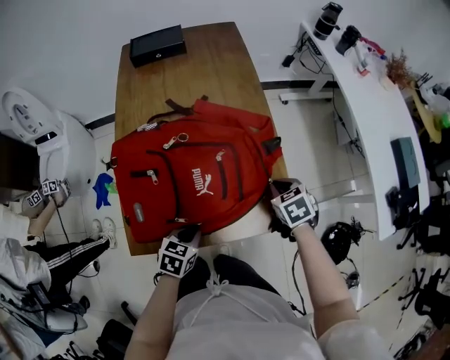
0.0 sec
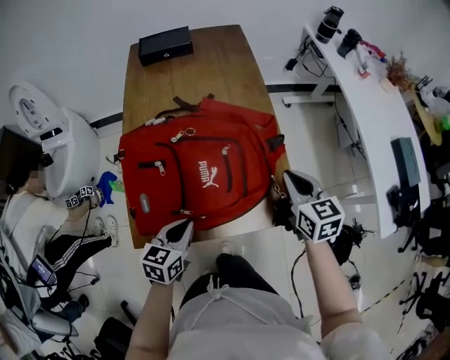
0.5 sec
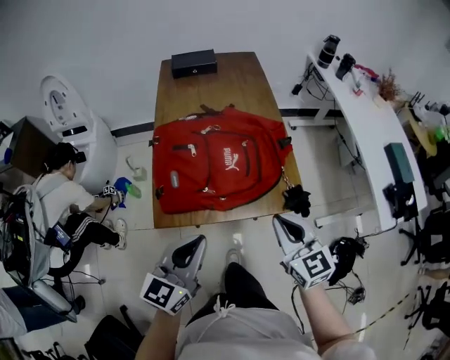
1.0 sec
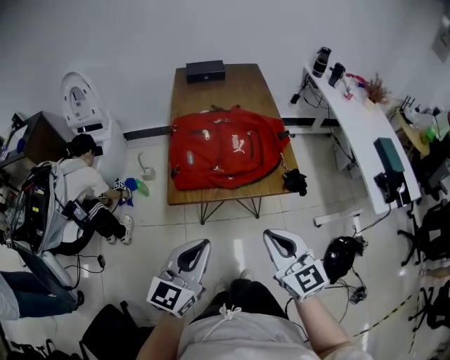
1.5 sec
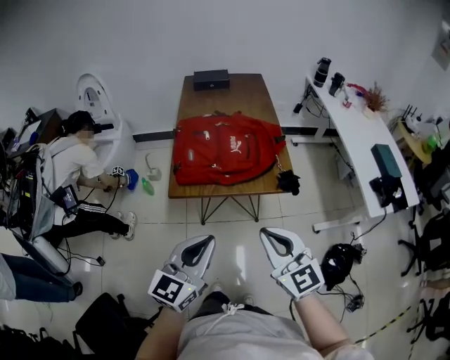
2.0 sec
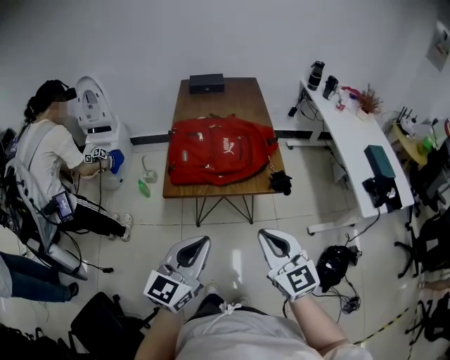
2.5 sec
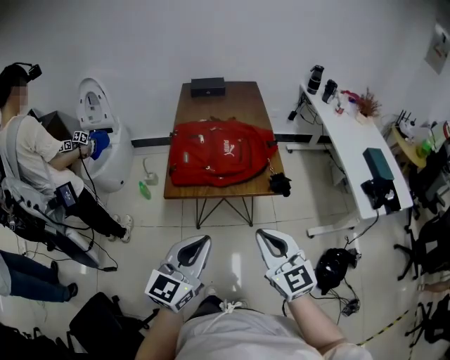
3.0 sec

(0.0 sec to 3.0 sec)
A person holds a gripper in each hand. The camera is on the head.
0.0 sec - 1.5 sec: The right gripper is displaced backward and upward by approximately 40 cm, and tilts its fingers approximately 50 degrees upward; the left gripper shifts some 40 cm upward and backward, and tilts its fingers roughly 50 degrees upward.
1.5 sec - 3.0 sec: The left gripper moves backward and to the right, approximately 10 cm, while the right gripper goes approximately 5 cm backward.

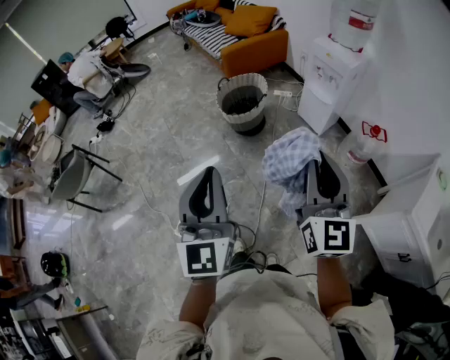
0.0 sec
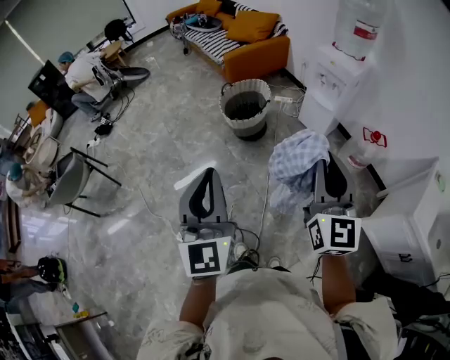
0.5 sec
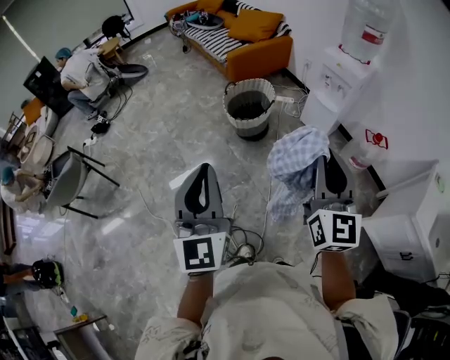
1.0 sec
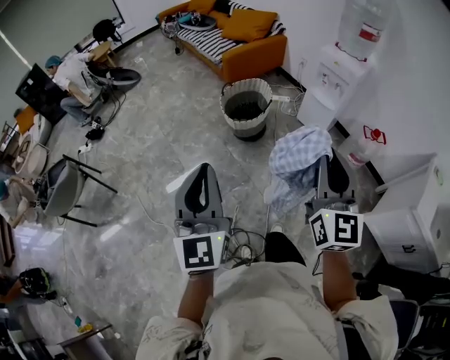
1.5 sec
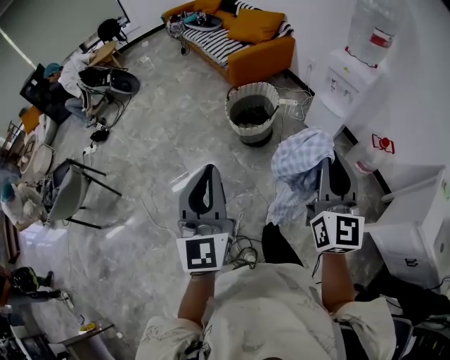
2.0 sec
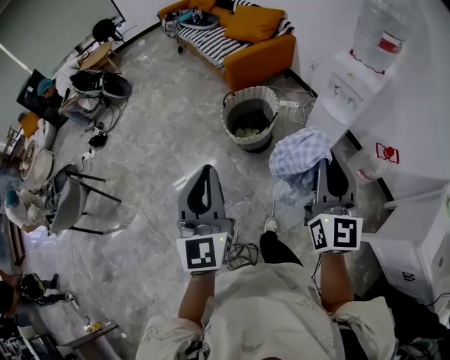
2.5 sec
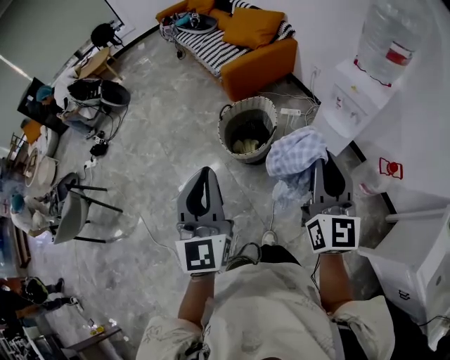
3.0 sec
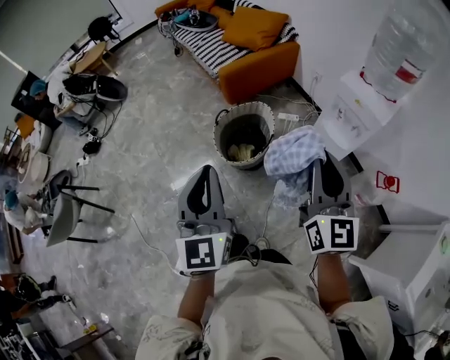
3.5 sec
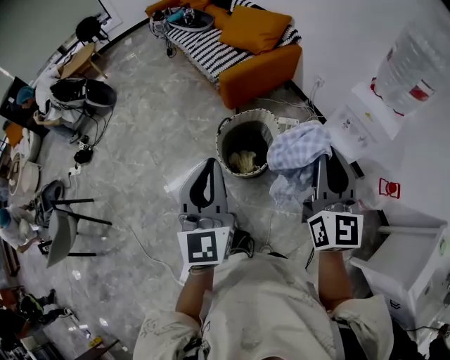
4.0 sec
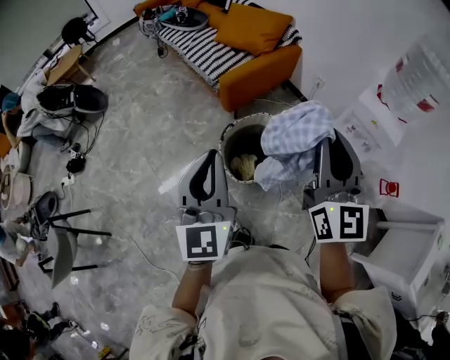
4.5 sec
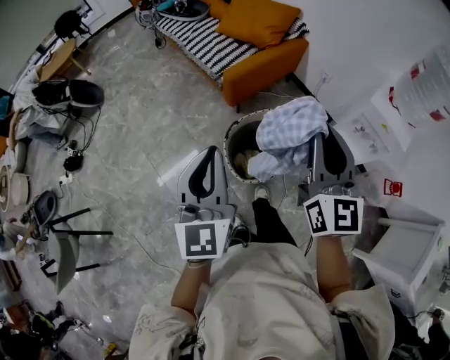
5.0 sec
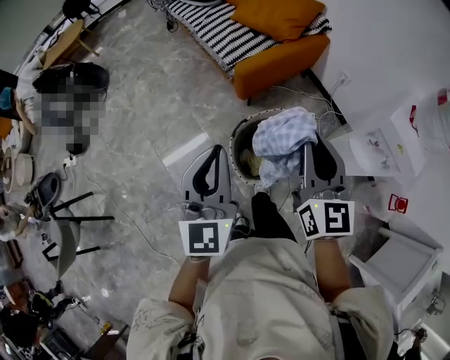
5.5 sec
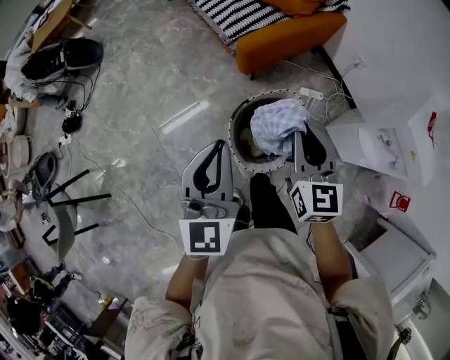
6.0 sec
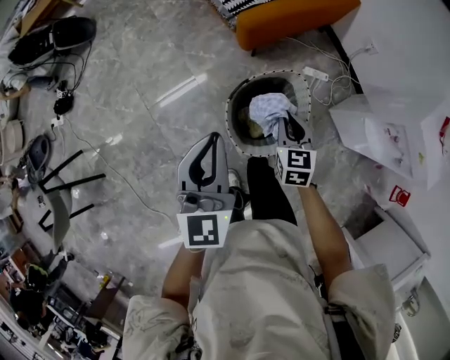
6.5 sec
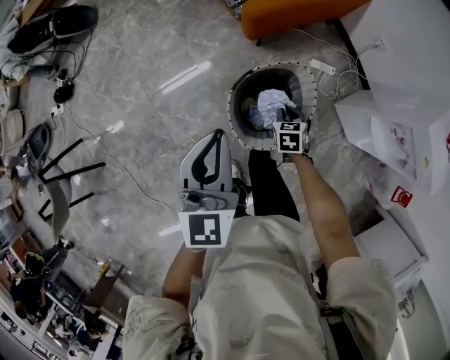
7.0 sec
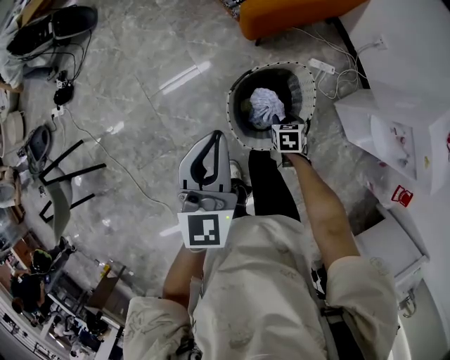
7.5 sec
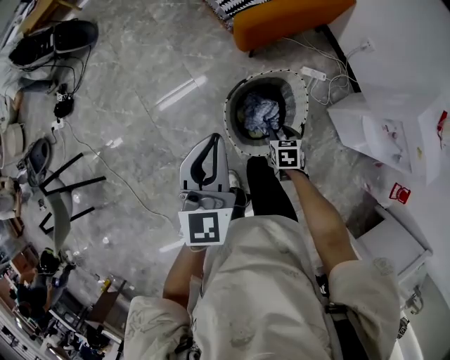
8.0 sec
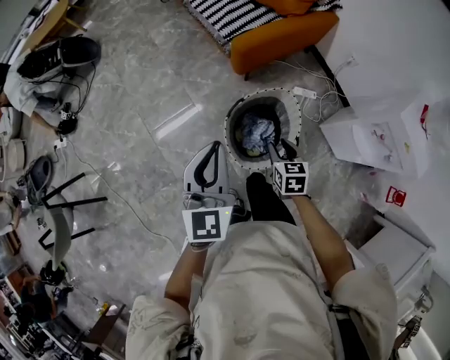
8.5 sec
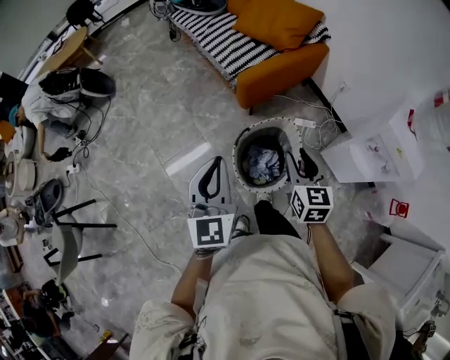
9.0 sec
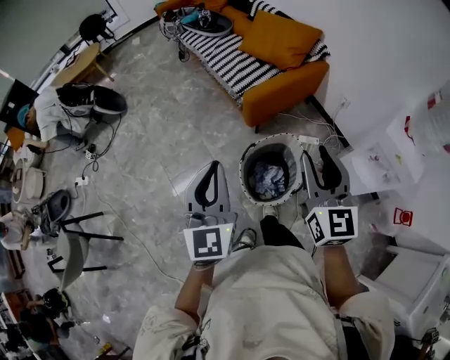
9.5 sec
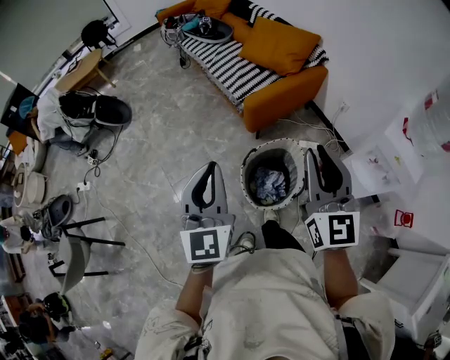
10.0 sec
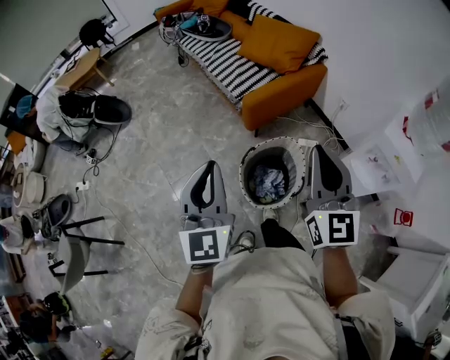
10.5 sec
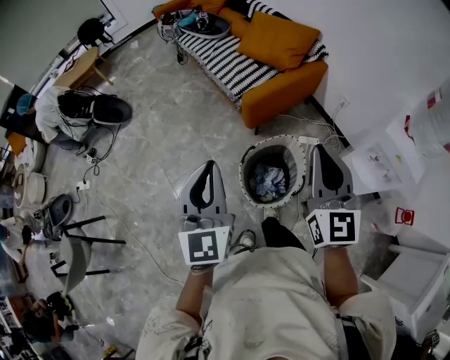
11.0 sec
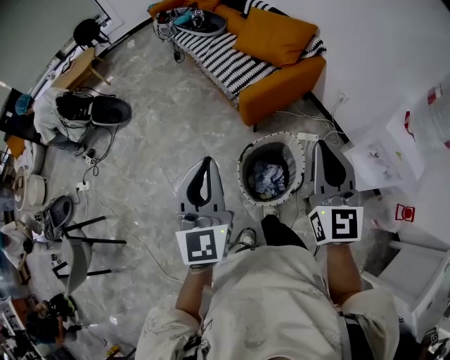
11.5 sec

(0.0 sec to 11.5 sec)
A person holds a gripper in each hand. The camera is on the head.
0.0 sec - 2.0 sec: Both grippers travel together to the left and forward, about 20 cm.
2.0 sec - 4.0 sec: Both grippers are carried forward, approximately 40 cm.
4.0 sec - 6.0 sec: The right gripper shifts about 40 cm forward, downward and to the left, and swivels approximately 20 degrees; the left gripper travels forward and downward by some 30 cm.
6.0 sec - 7.5 sec: The left gripper heads downward, covering some 10 cm; the right gripper heads downward, covering approximately 40 cm, tips its fingers downward by some 50 degrees, and opens.
7.5 sec - 9.5 sec: The right gripper shifts about 50 cm upward, and points its fingers about 60 degrees further upward, while the left gripper heads upward and backward, covering some 20 cm.
9.5 sec - 11.5 sec: The right gripper closes.

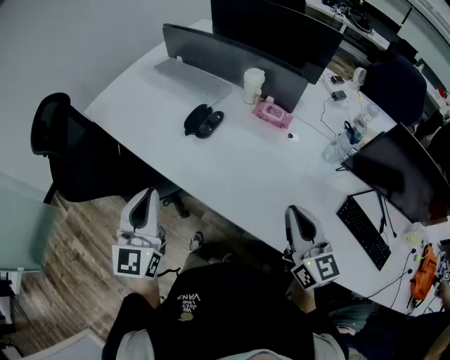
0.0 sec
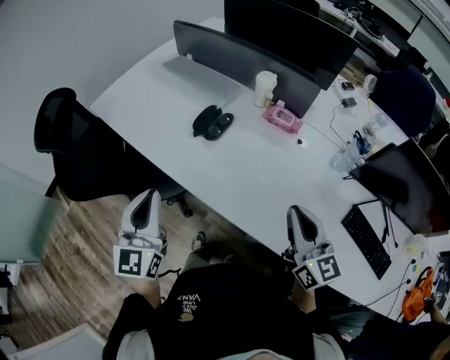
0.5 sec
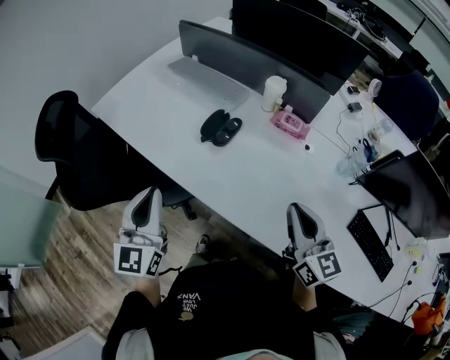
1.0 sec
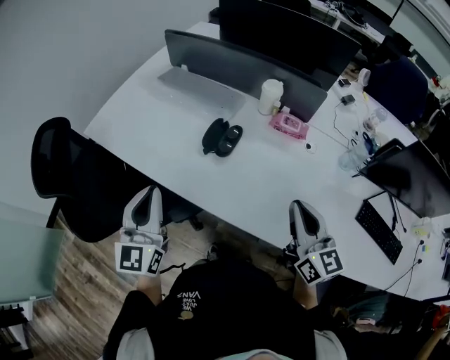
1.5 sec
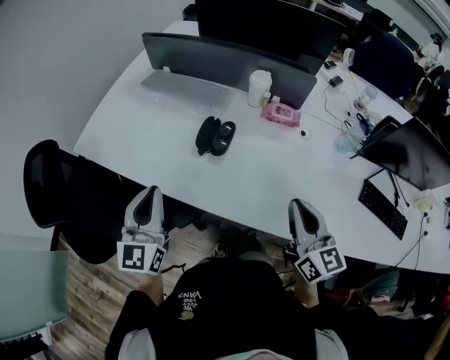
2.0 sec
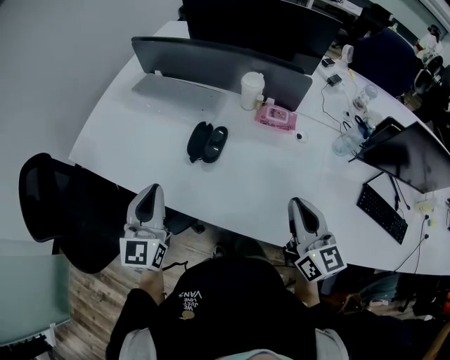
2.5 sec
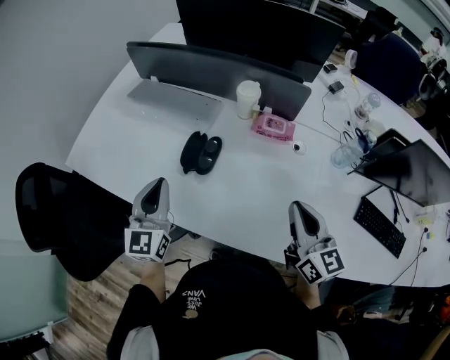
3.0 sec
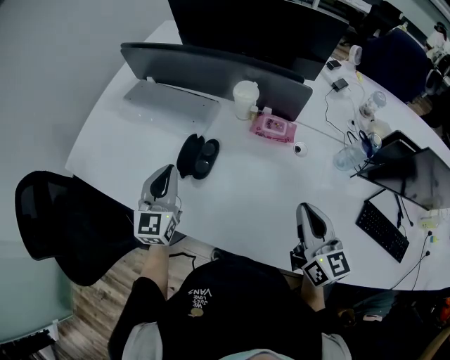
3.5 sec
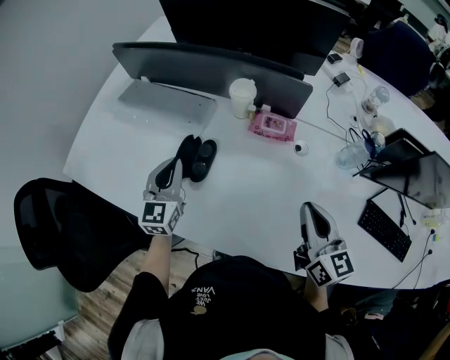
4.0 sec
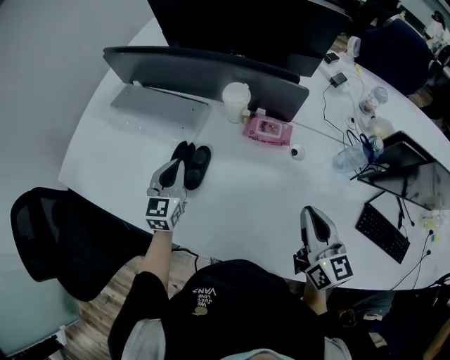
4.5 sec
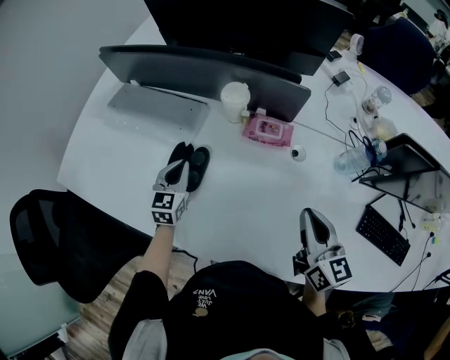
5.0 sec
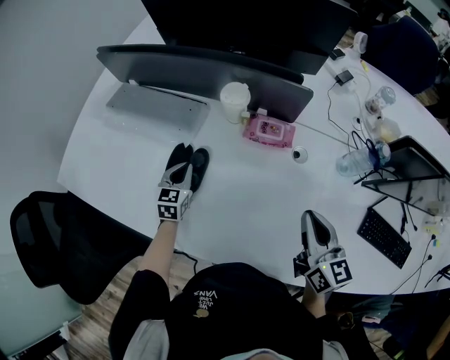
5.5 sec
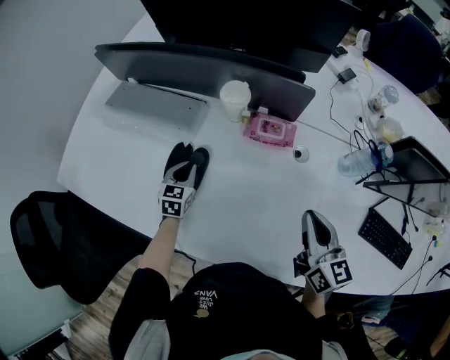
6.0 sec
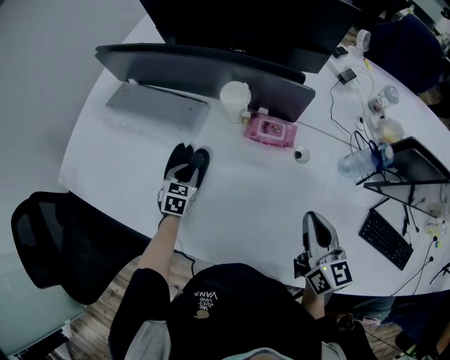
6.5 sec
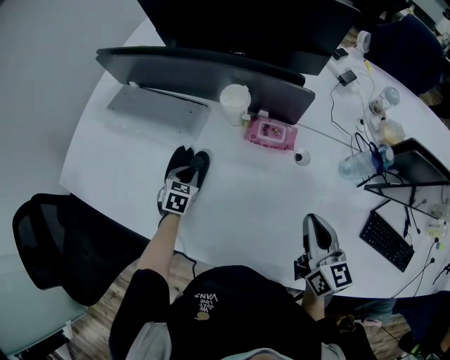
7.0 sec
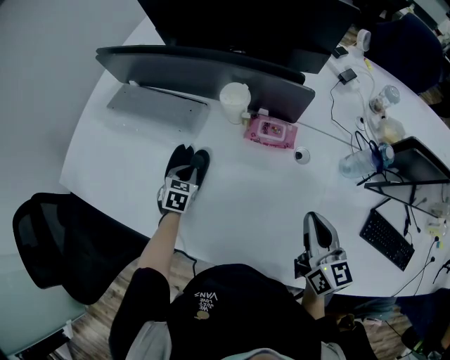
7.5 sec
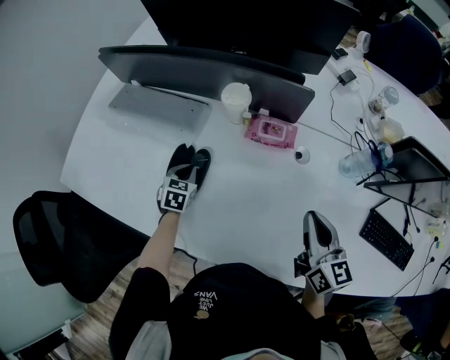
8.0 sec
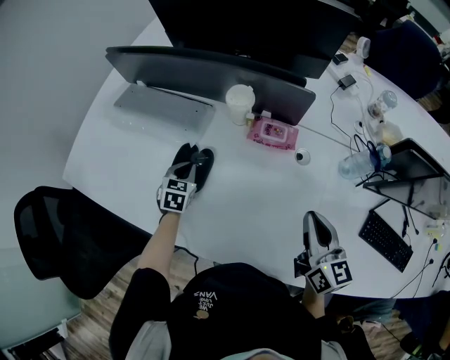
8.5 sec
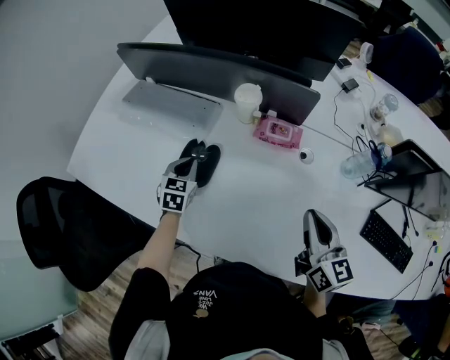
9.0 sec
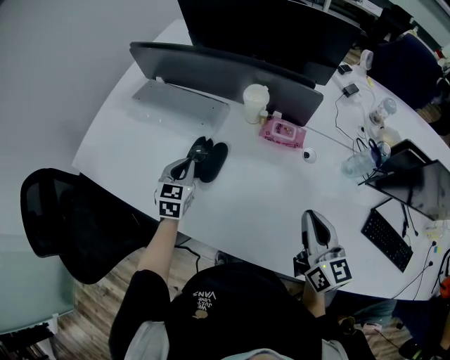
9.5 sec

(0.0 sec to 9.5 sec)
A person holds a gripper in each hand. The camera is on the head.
0.0 sec - 2.0 sec: The right gripper is displaced to the left and forward by approximately 15 cm. Meanwhile the left gripper goes some 20 cm forward and to the left.
2.0 sec - 4.0 sec: The right gripper goes some 15 cm to the right and forward. Meanwhile the left gripper travels forward, to the right and downward by roughly 25 cm.
4.0 sec - 5.5 sec: The right gripper shifts by approximately 5 cm. Meanwhile the left gripper goes roughly 15 cm downward and forward, and changes its angle by roughly 20 degrees.
5.5 sec - 7.5 sec: The left gripper goes about 5 cm downward, and turns by roughly 20 degrees.
7.5 sec - 9.5 sec: The left gripper travels upward by about 15 cm, and rotates approximately 20 degrees. The right gripper moves backward and to the left, about 5 cm.

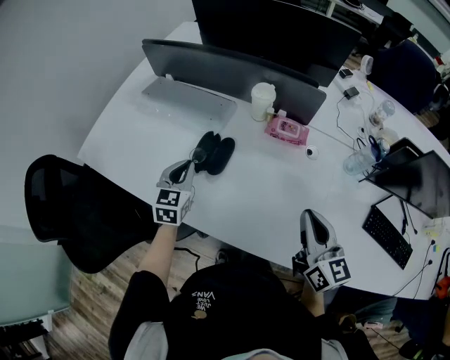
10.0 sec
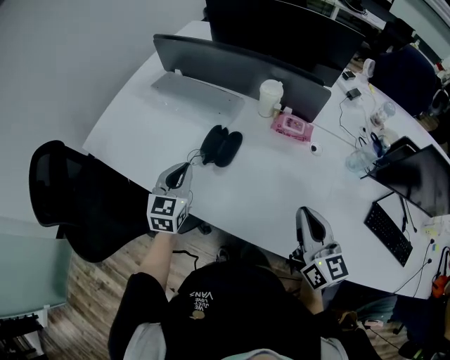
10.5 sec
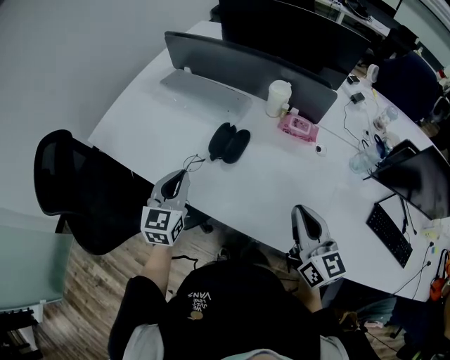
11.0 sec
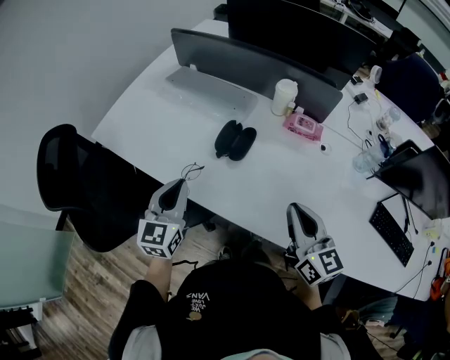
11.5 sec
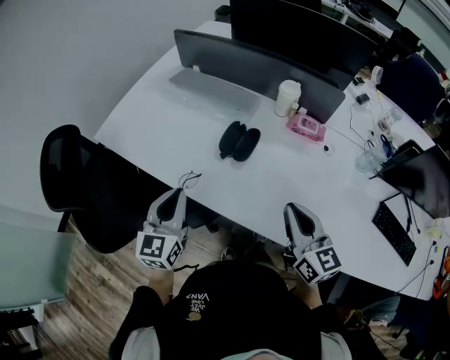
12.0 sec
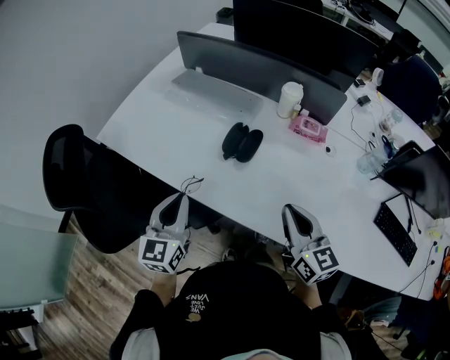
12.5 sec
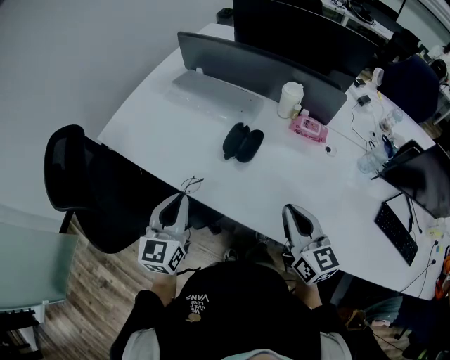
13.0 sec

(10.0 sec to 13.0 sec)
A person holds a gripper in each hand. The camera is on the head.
10.0 sec - 11.5 sec: The left gripper goes some 20 cm backward, to the left and upward, while the right gripper is displaced to the left by some 10 cm.
11.5 sec - 13.0 sec: The grippers stay close to where they were, moving slightly.
